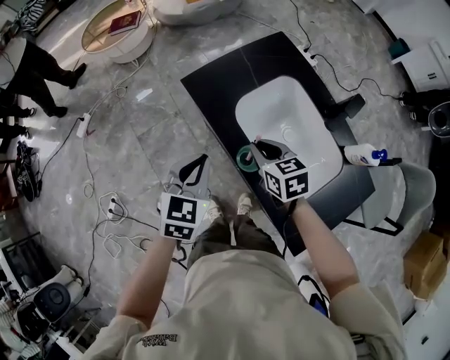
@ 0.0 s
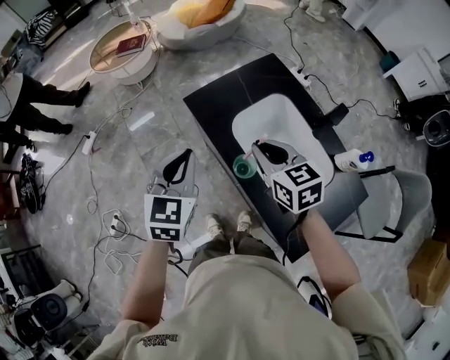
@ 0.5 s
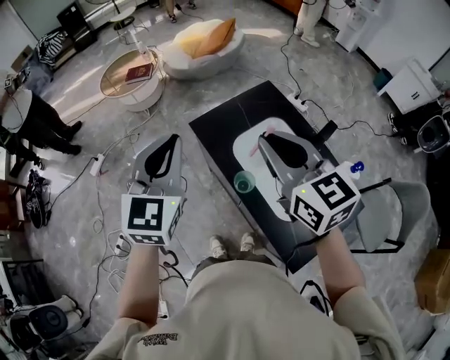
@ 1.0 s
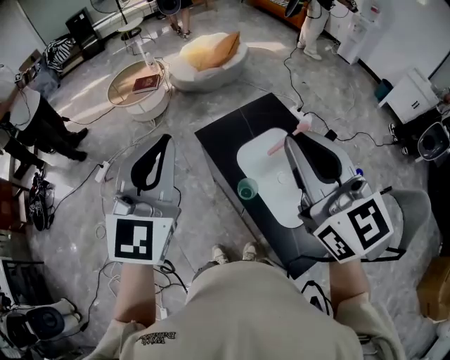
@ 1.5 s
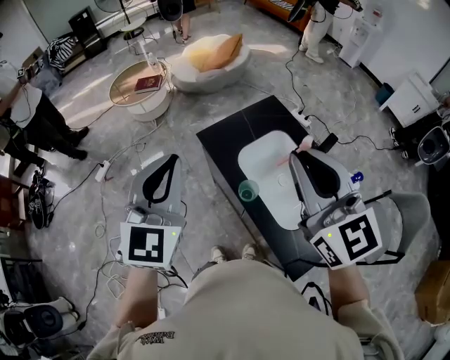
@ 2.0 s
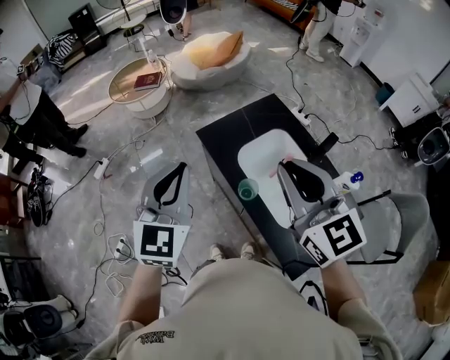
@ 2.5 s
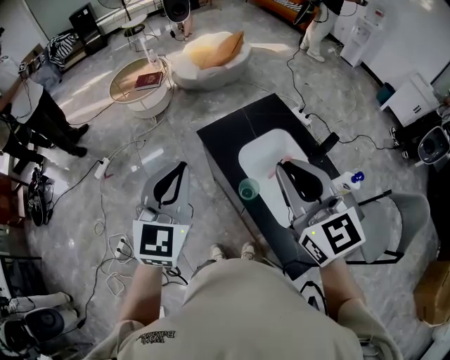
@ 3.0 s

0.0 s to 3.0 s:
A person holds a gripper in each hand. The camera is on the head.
0.0 to 1.5 s: Both grippers move upward, roughly 40 cm. The right gripper tilts its fingers about 40 degrees upward. The left gripper angles its fingers upward, by some 30 degrees.
1.5 to 3.0 s: The grippers both shift downward by about 10 cm.

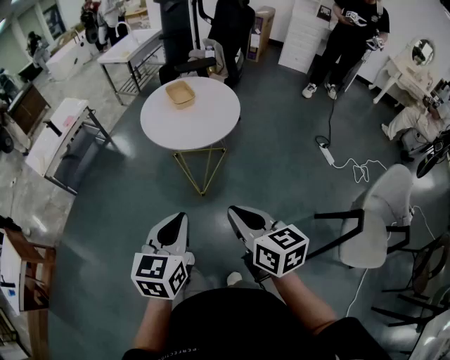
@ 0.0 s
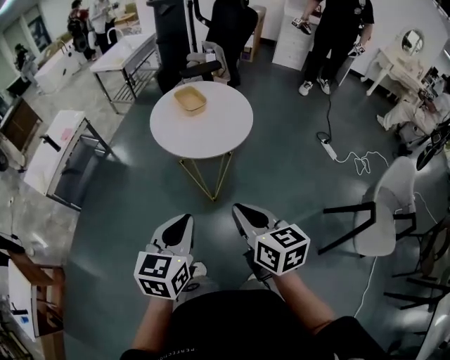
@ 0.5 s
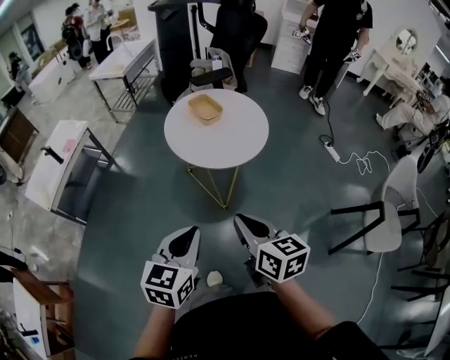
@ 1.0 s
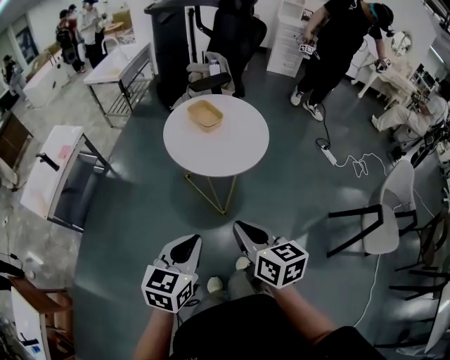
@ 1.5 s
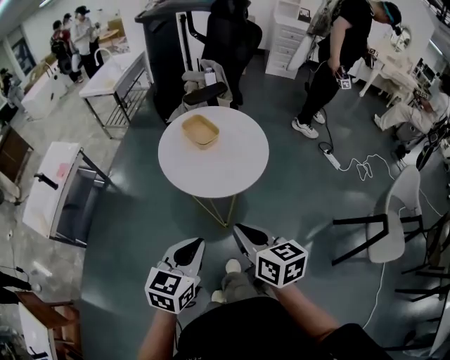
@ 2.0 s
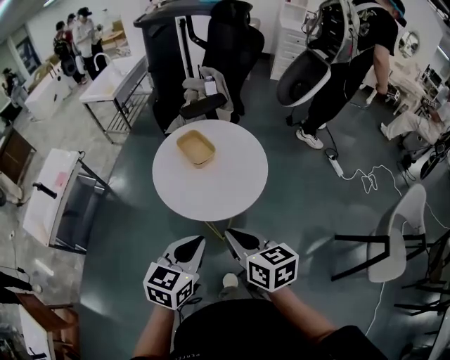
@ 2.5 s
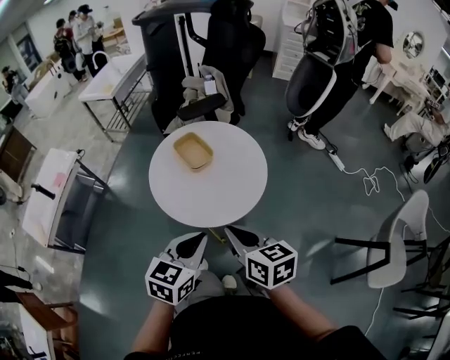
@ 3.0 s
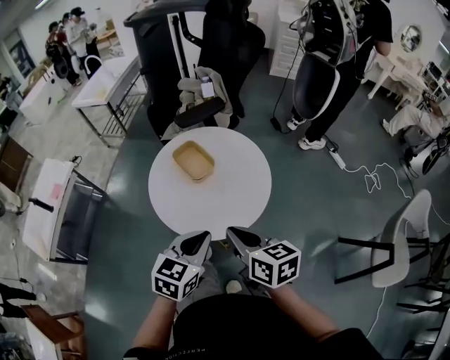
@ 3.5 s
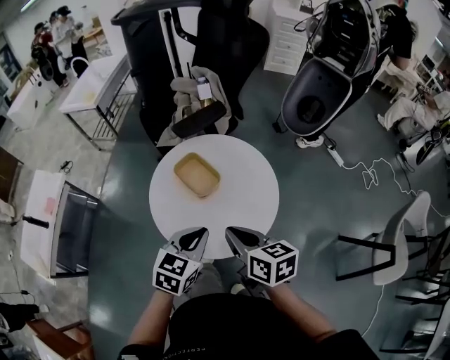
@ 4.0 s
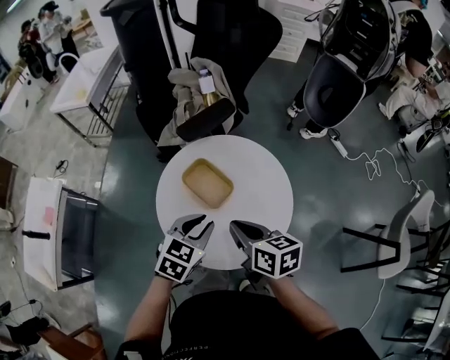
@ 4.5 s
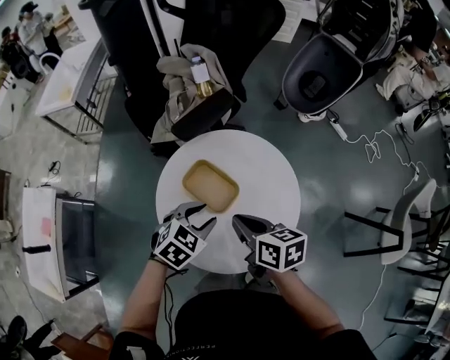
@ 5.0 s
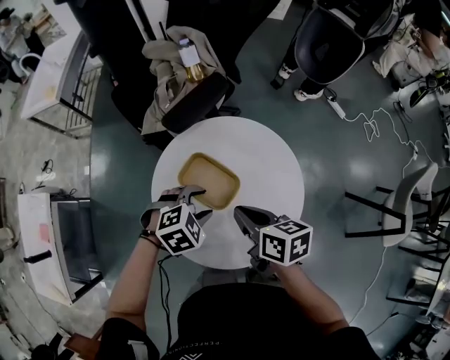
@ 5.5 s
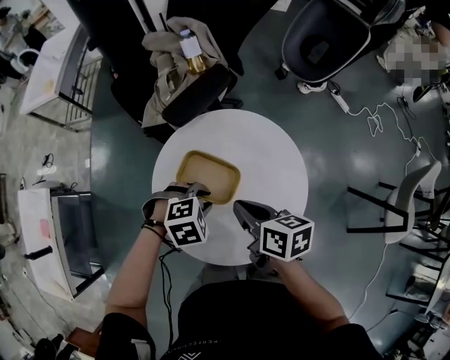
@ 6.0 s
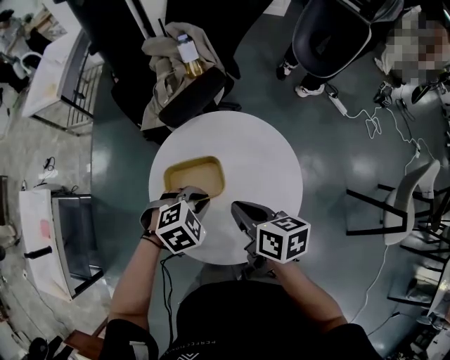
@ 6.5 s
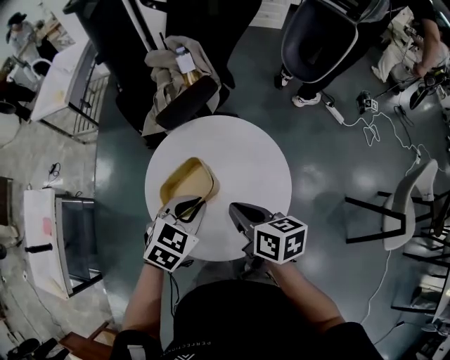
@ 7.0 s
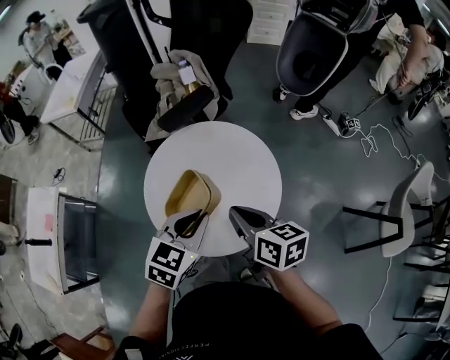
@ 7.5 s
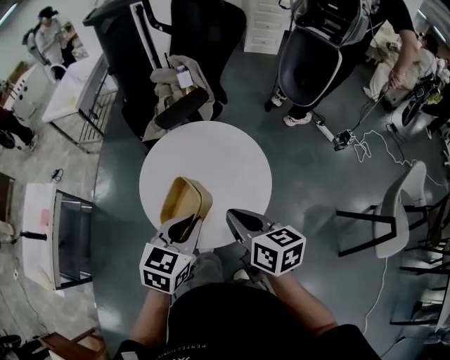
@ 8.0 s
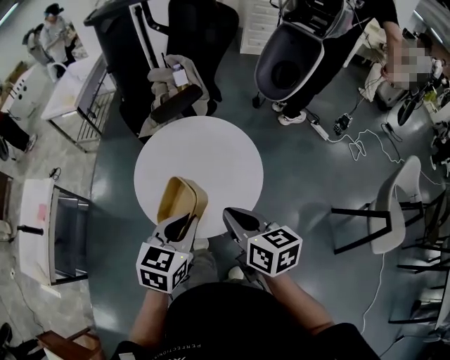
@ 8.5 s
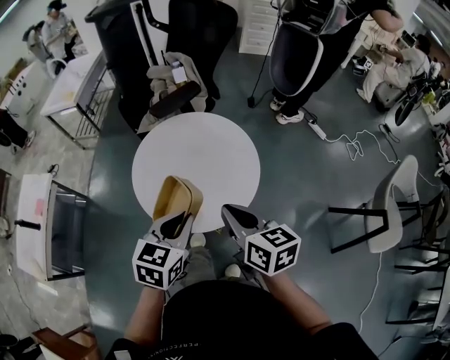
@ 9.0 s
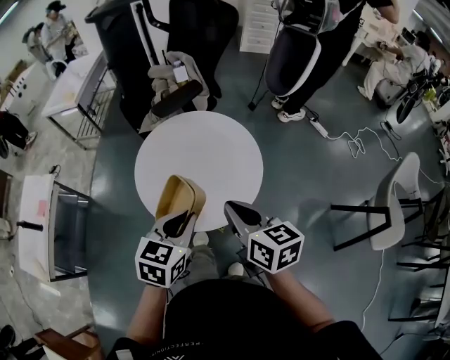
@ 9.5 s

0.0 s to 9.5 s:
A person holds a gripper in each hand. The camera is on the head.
0.0 to 2.0 s: Both grippers move to the left and forward, some 25 cm. The left gripper turns by about 20 degrees.
2.0 to 4.0 s: Both grippers move forward, approximately 30 cm.
4.0 to 5.5 s: The grippers both shift forward, downward and to the left by roughly 20 cm. The left gripper changes its angle by roughly 60 degrees, and opens its fingers.
5.5 to 7.5 s: The left gripper travels upward, backward and to the right by about 20 cm, rotates roughly 50 degrees, and closes. The right gripper moves to the right, backward and upward, some 10 cm.
7.5 to 9.5 s: Both grippers travel together backward, about 10 cm.

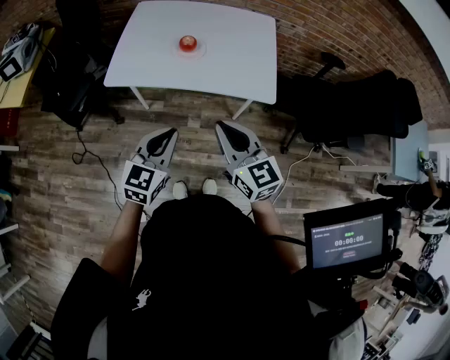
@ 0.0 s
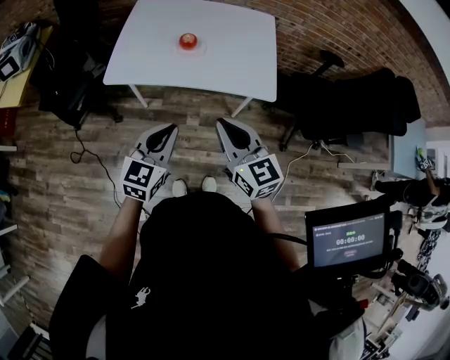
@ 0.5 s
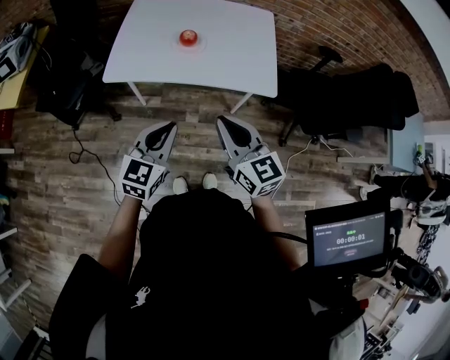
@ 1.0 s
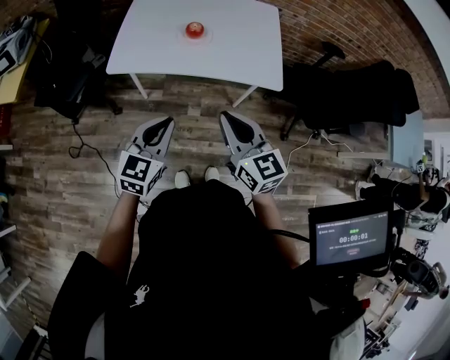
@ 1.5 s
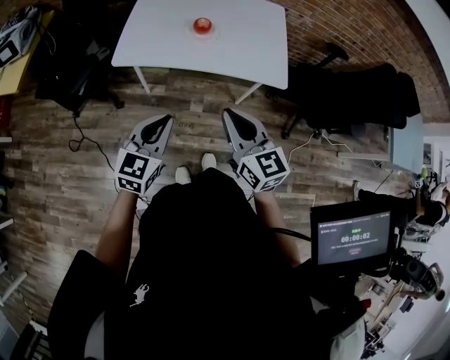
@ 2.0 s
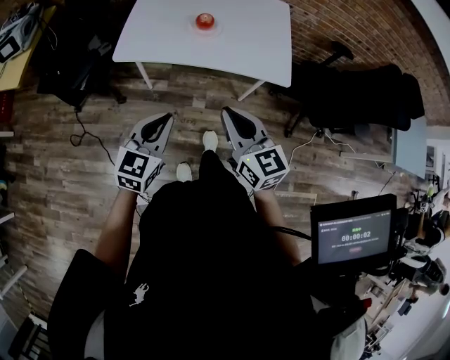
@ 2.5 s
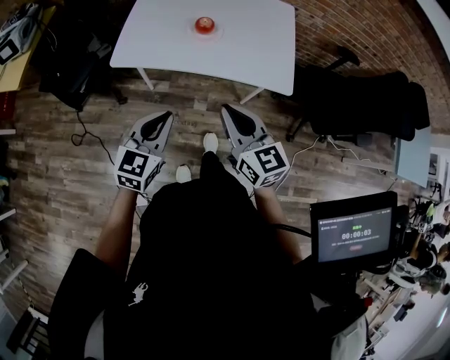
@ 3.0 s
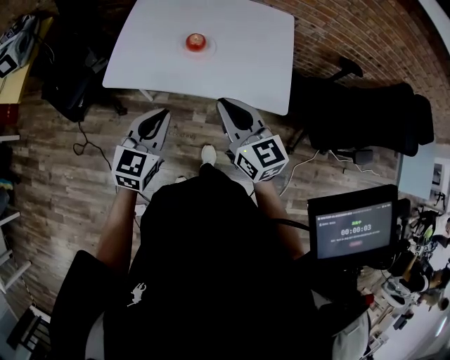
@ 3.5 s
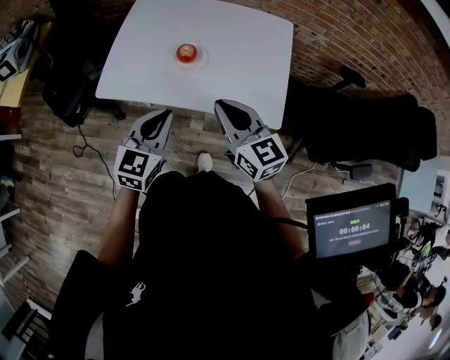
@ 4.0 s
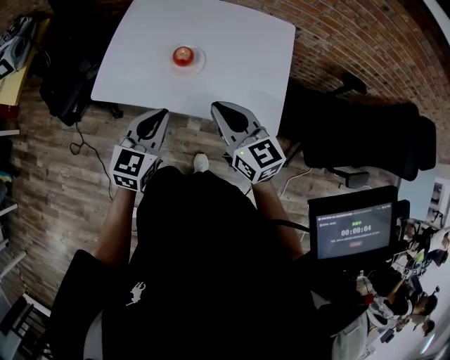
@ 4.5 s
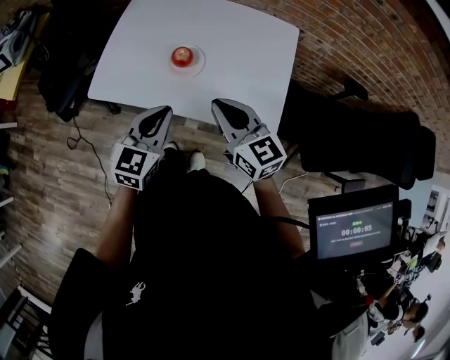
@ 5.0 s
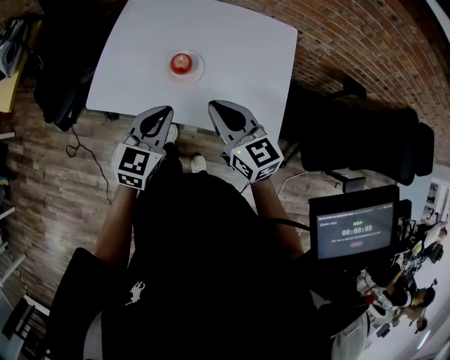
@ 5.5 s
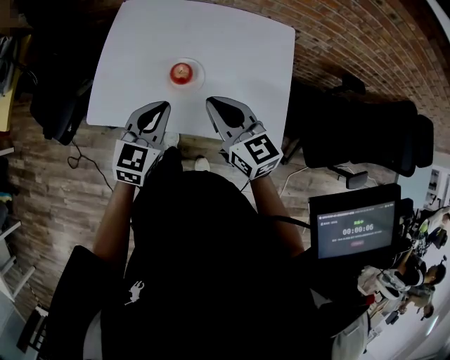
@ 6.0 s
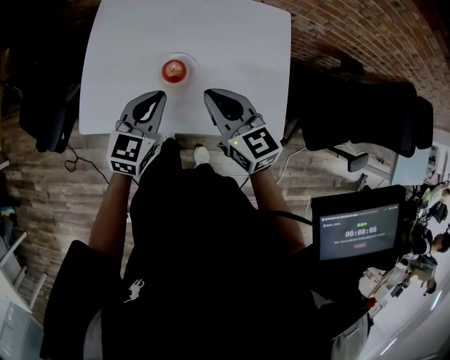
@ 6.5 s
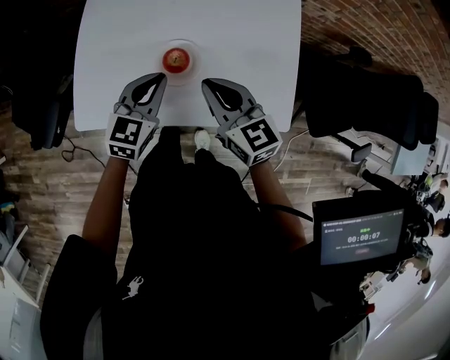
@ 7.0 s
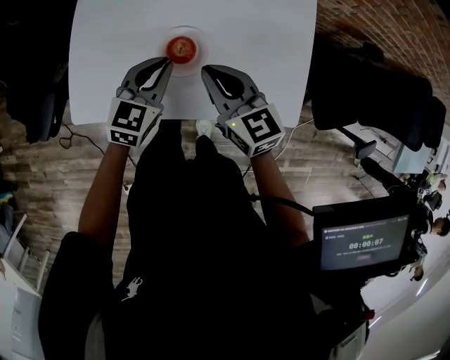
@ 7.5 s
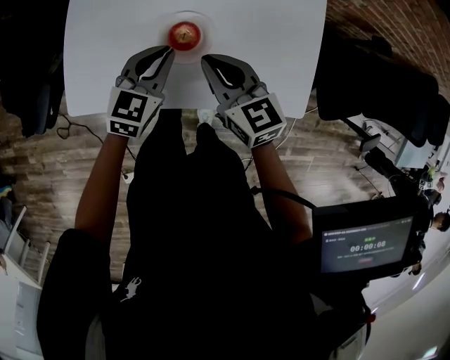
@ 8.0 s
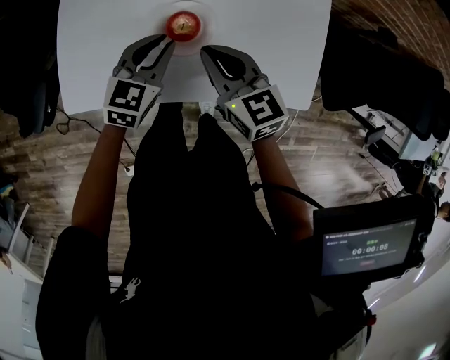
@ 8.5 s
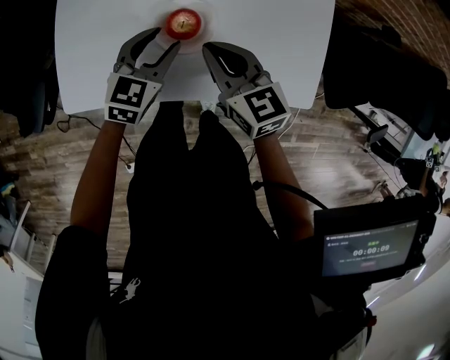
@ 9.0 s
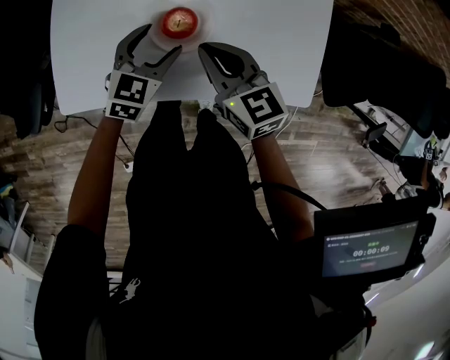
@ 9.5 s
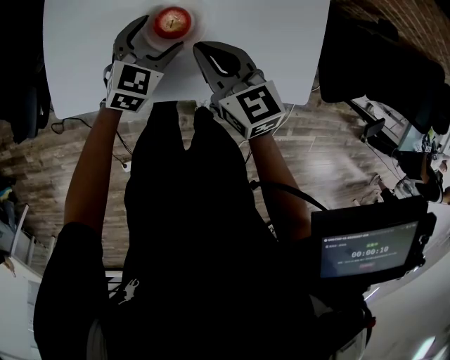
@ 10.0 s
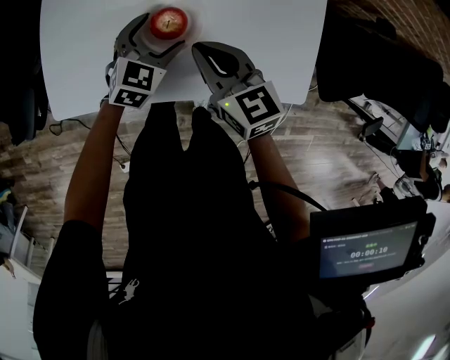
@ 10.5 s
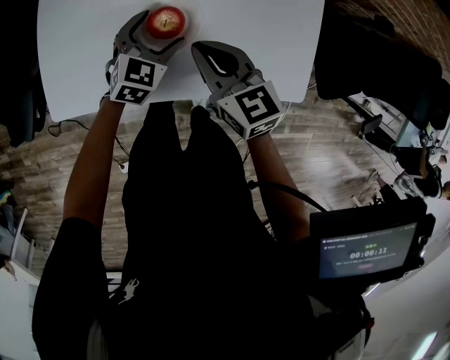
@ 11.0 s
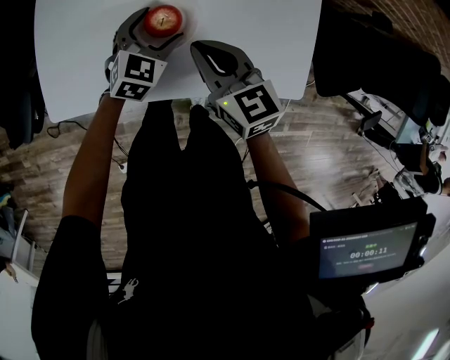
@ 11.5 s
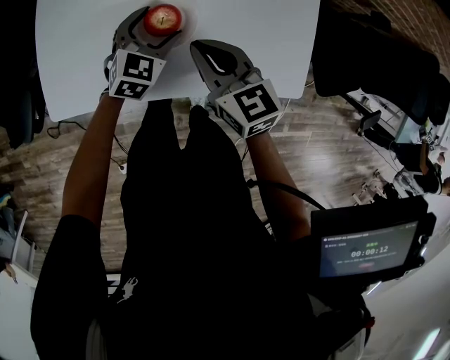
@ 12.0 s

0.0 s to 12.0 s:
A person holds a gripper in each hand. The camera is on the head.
0.0 to 2.0 s: The grippers both shift to the left by about 5 cm.
2.0 to 4.0 s: The grippers both shift forward and to the right by about 20 cm.
4.0 to 6.0 s: Both grippers move forward, about 10 cm.
6.0 to 8.0 s: The two grippers go approximately 15 cm downward and forward.
8.0 to 10.0 s: The left gripper opens up.
10.0 to 12.0 s: There are only small adjustments of the grippers.

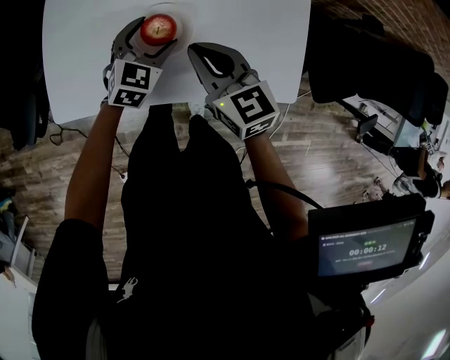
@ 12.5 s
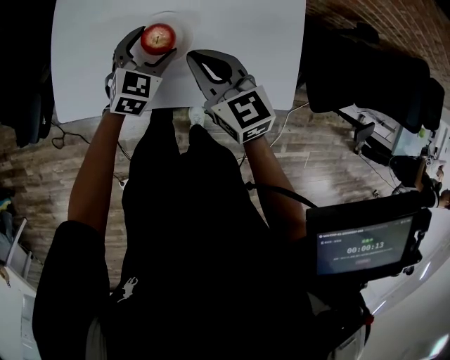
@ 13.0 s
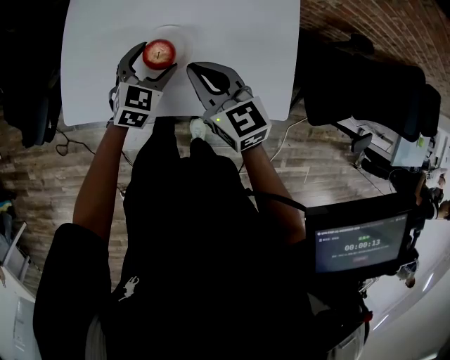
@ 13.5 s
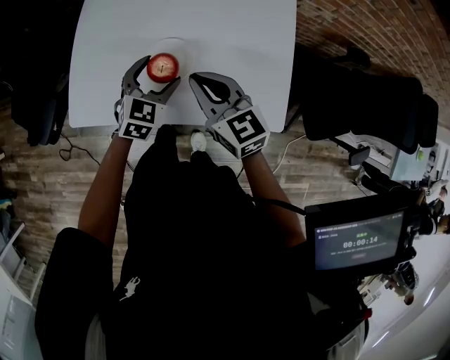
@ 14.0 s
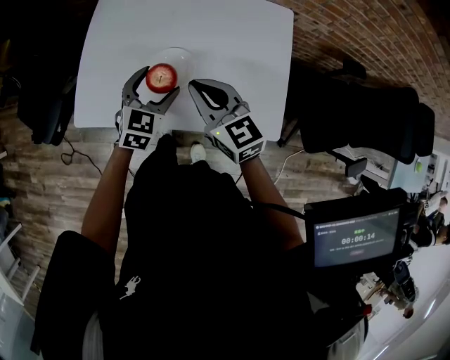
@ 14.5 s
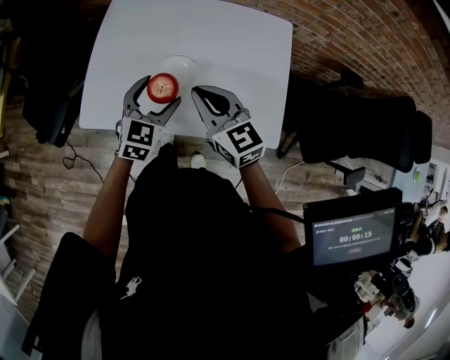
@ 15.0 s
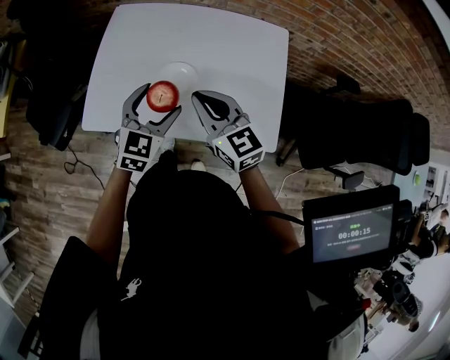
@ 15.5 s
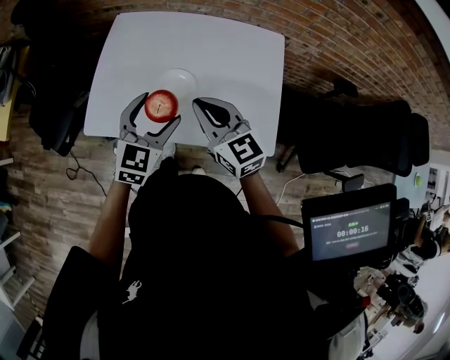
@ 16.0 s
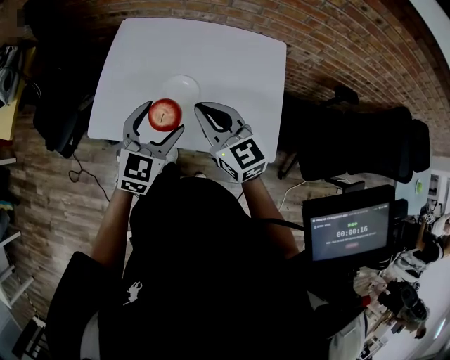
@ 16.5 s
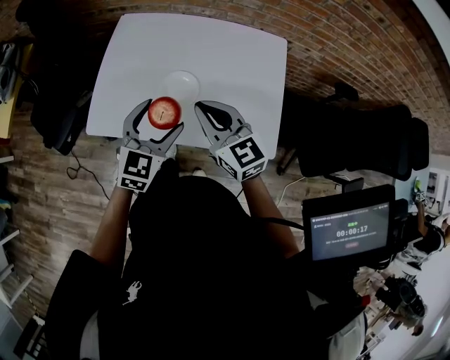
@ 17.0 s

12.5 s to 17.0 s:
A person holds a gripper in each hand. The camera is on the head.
12.5 to 14.5 s: The right gripper shifts about 10 cm upward. Meanwhile the left gripper moves upward and backward, roughly 15 cm.
14.5 to 17.0 s: The right gripper moves about 5 cm. Meanwhile the left gripper travels upward and backward by roughly 15 cm.
